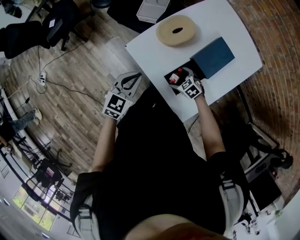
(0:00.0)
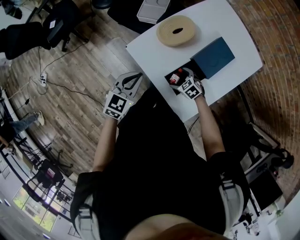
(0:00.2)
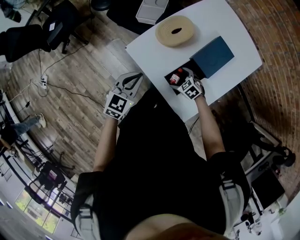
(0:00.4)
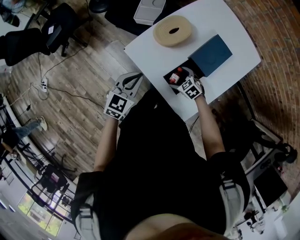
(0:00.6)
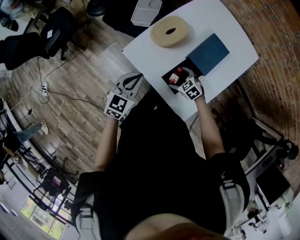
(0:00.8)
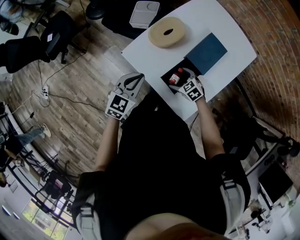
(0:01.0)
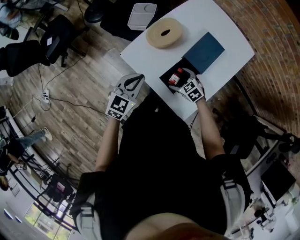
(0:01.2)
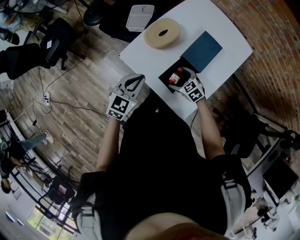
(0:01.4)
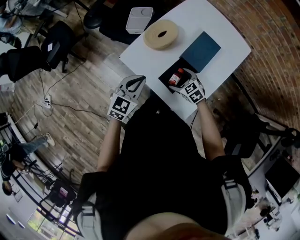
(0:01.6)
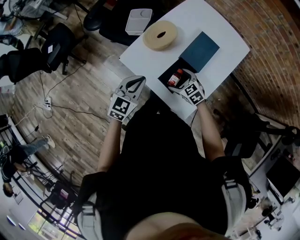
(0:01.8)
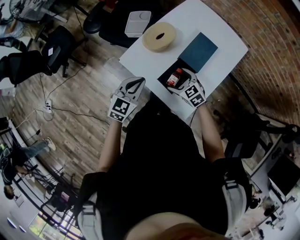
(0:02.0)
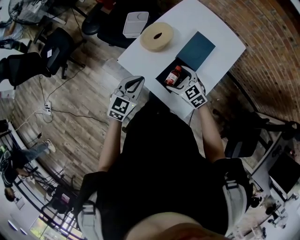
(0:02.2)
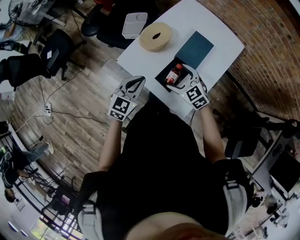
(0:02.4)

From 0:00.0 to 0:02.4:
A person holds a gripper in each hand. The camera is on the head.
From 0:00.0 to 0:01.2: The right gripper goes about 5 cm upward.
From 0:01.2 to 0:02.4: The right gripper moves upward, roughly 15 cm.

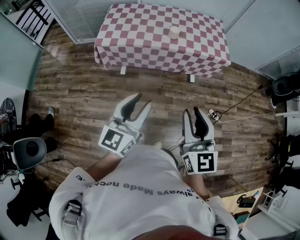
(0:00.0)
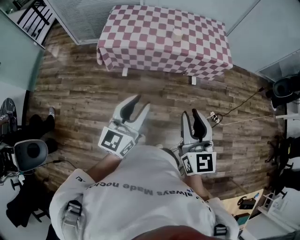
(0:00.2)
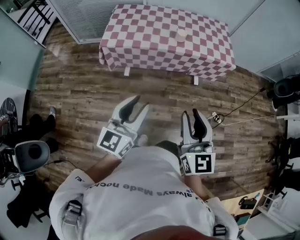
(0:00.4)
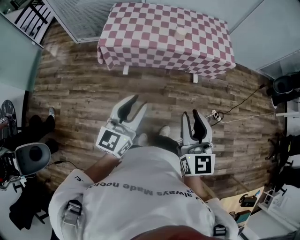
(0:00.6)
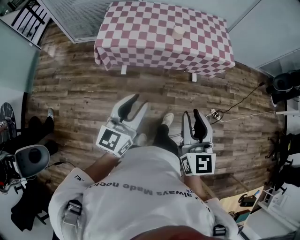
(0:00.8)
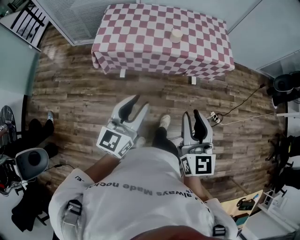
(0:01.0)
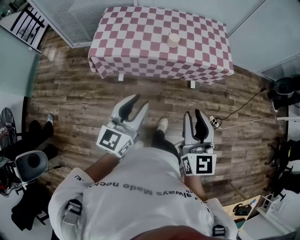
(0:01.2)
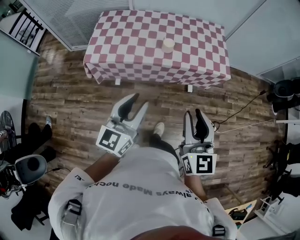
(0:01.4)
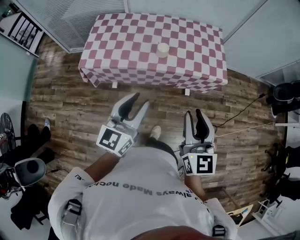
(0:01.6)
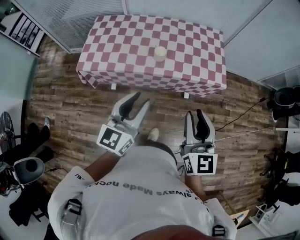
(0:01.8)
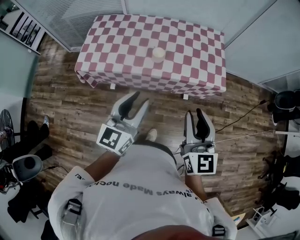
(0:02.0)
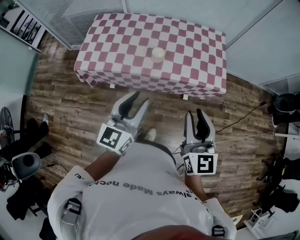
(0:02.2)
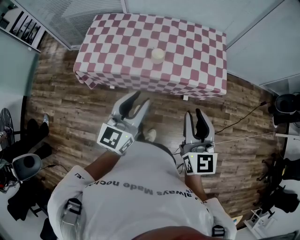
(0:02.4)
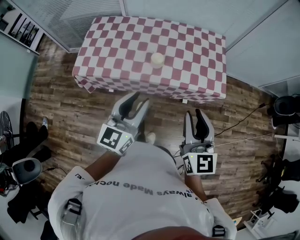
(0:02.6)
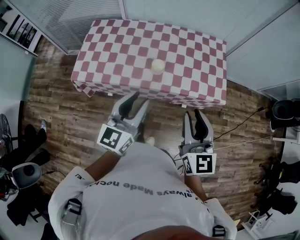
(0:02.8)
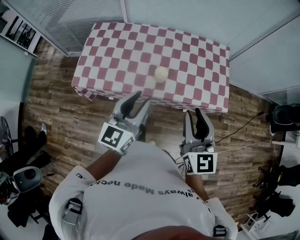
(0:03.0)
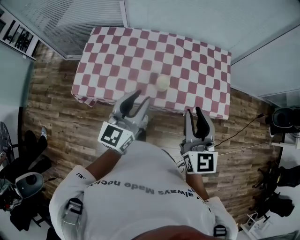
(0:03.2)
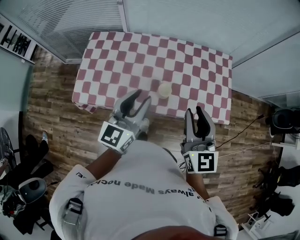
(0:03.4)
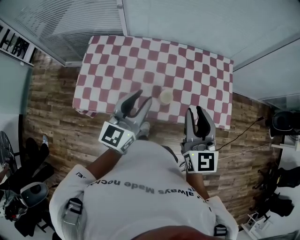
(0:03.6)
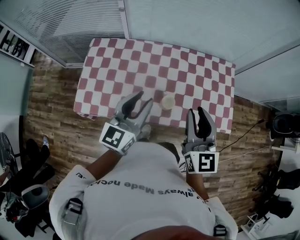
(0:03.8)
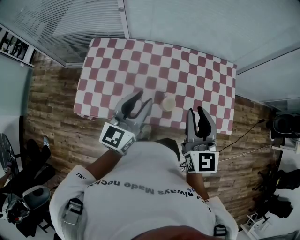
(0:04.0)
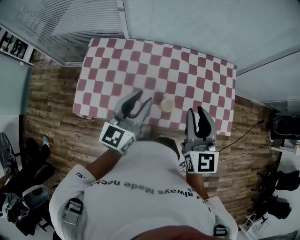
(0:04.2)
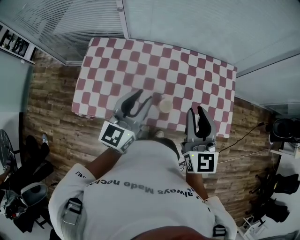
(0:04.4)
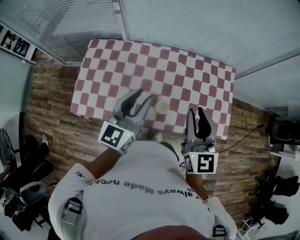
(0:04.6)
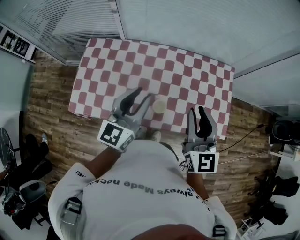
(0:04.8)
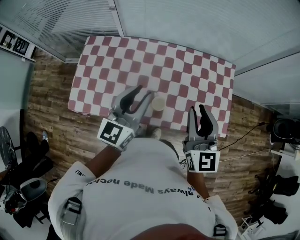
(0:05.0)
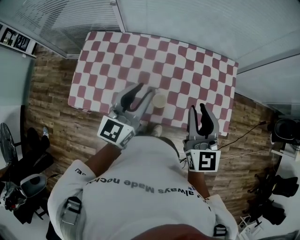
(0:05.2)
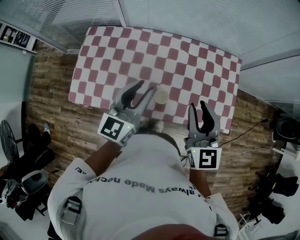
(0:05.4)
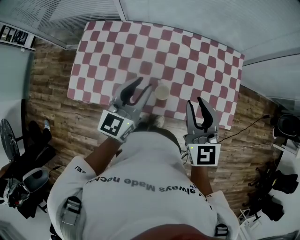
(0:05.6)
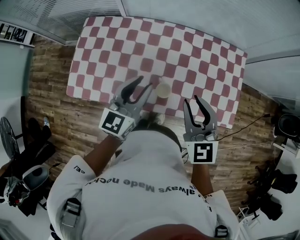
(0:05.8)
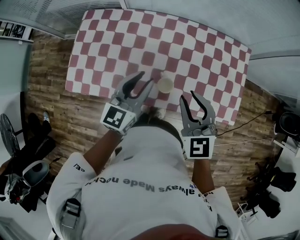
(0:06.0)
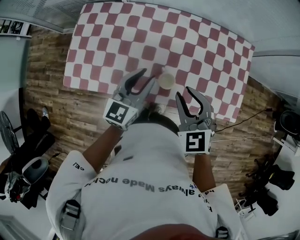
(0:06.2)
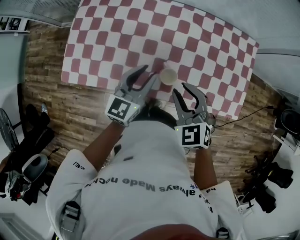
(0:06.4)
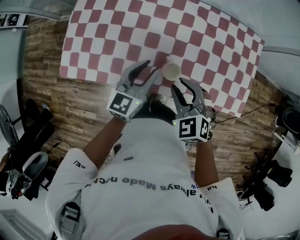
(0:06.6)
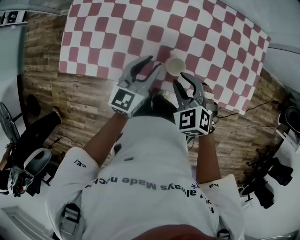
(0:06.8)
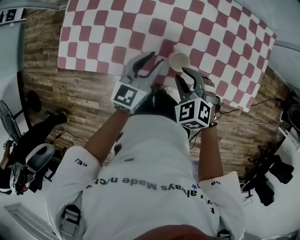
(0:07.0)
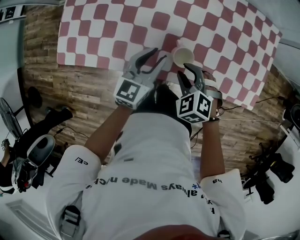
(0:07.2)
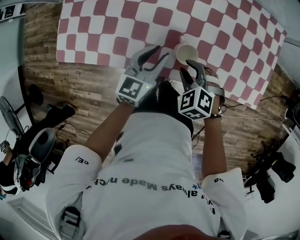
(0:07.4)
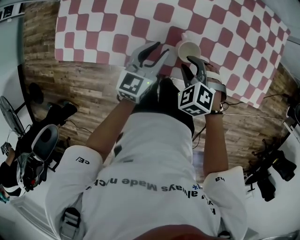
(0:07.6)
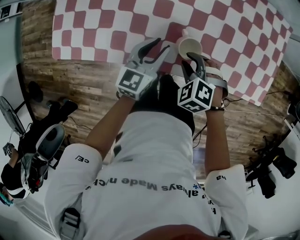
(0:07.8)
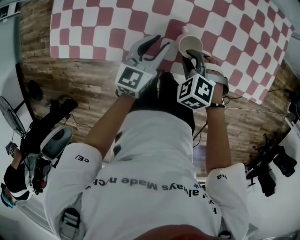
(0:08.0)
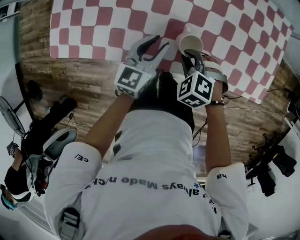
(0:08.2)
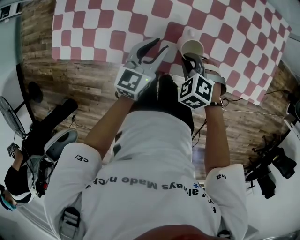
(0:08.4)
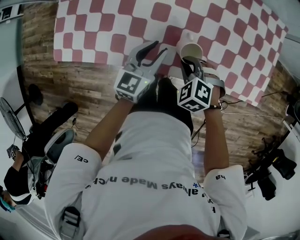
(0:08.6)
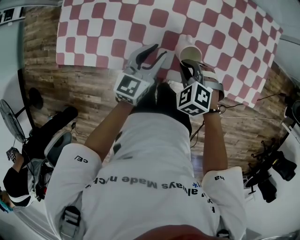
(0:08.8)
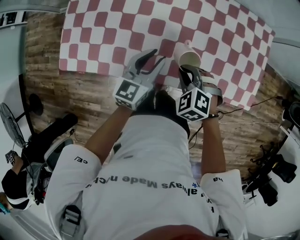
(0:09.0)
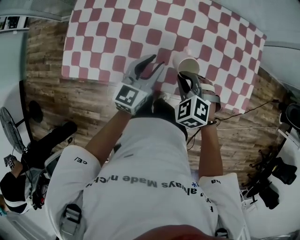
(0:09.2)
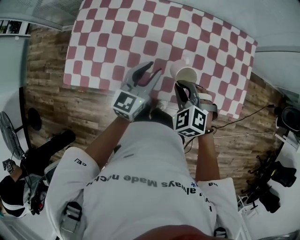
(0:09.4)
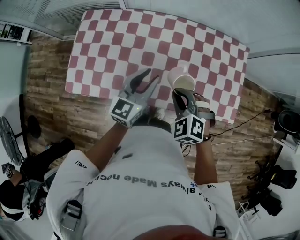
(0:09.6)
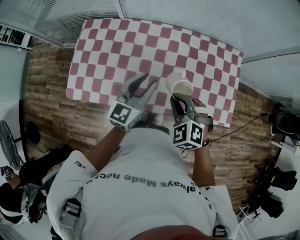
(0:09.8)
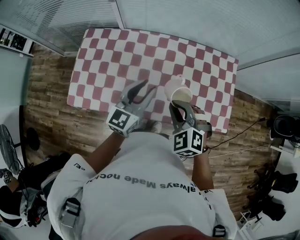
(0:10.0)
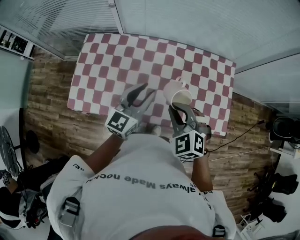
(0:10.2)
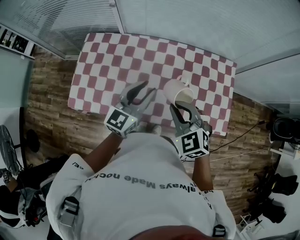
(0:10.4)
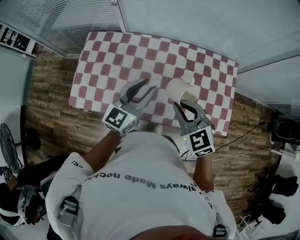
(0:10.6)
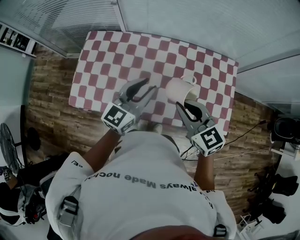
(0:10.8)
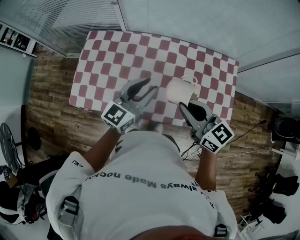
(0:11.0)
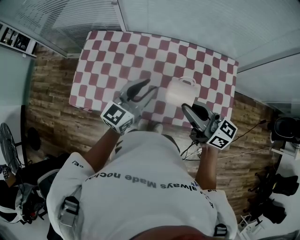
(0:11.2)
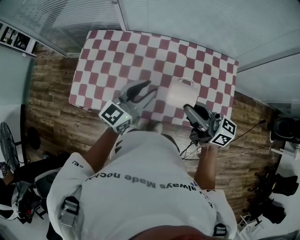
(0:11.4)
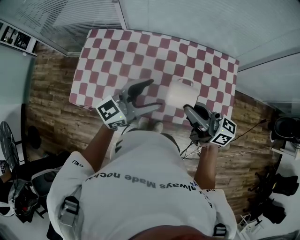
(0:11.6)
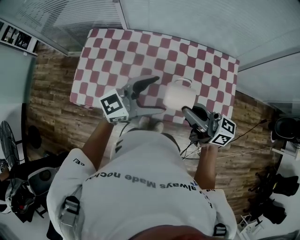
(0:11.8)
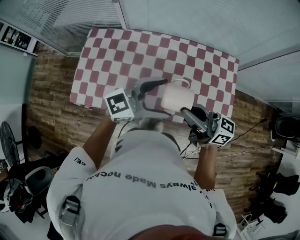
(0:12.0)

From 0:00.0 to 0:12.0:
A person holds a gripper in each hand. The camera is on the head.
From 0:00.0 to 0:01.6: The two grippers go roughly 25 cm forward.
From 0:01.6 to 0:03.0: Both grippers travel together forward, about 25 cm.
From 0:03.0 to 0:04.4: The grippers both shift forward by roughly 25 cm.
From 0:04.4 to 0:06.0: The grippers both shift downward by about 10 cm. The right gripper swivels approximately 30 degrees.
From 0:06.0 to 0:07.6: The two grippers go approximately 25 cm downward. The right gripper tilts its fingers roughly 40 degrees downward.
From 0:07.6 to 0:09.0: The grippers both shift upward by some 5 cm.
From 0:09.0 to 0:10.4: Both grippers move upward, some 25 cm. The right gripper changes its angle by some 30 degrees.
From 0:10.4 to 0:12.0: The right gripper is displaced upward by about 5 cm, and angles its fingers upward, by roughly 50 degrees. Meanwhile the left gripper shifts by approximately 10 cm, swivels about 40 degrees, and opens.

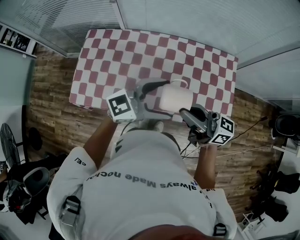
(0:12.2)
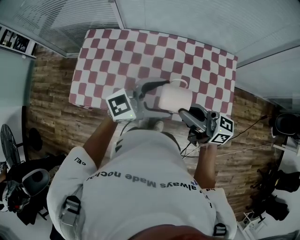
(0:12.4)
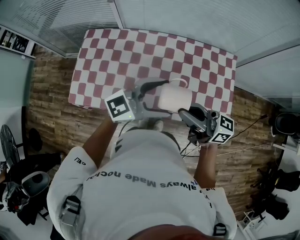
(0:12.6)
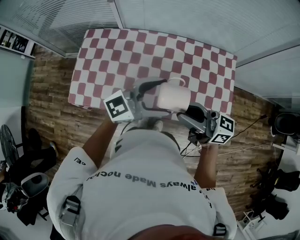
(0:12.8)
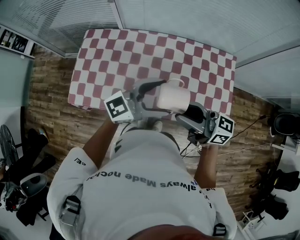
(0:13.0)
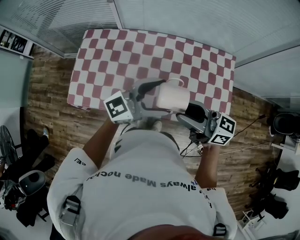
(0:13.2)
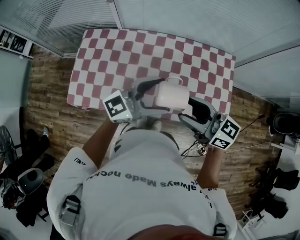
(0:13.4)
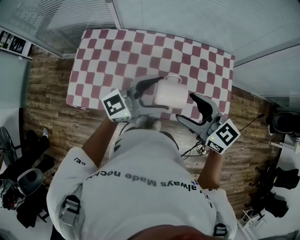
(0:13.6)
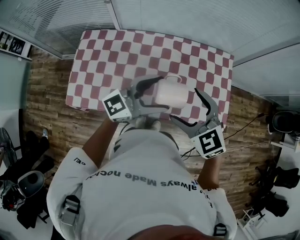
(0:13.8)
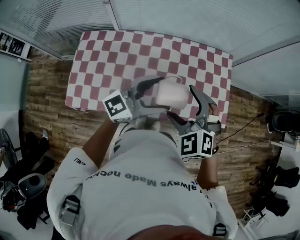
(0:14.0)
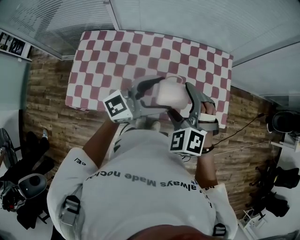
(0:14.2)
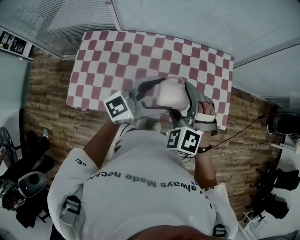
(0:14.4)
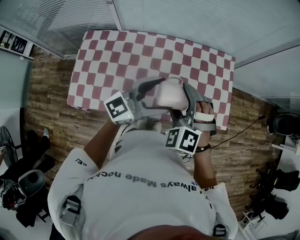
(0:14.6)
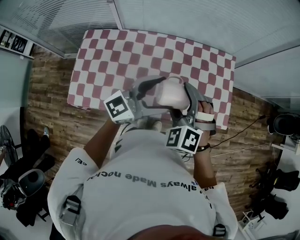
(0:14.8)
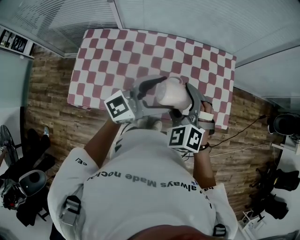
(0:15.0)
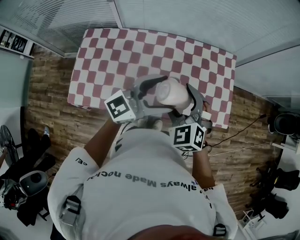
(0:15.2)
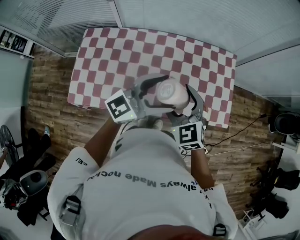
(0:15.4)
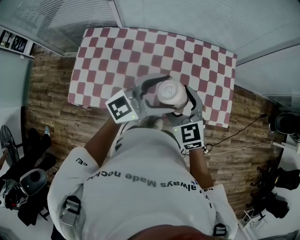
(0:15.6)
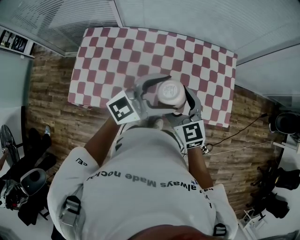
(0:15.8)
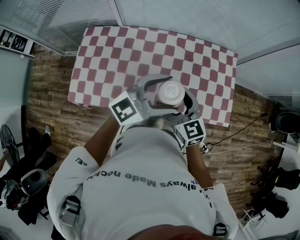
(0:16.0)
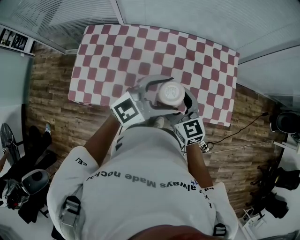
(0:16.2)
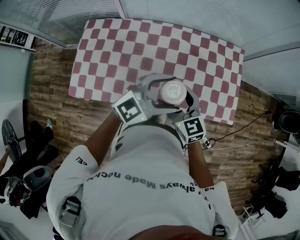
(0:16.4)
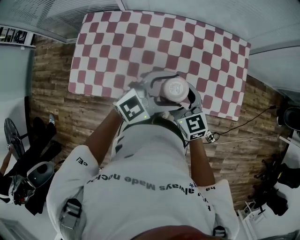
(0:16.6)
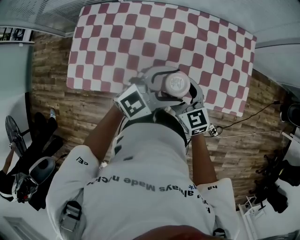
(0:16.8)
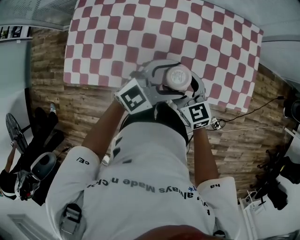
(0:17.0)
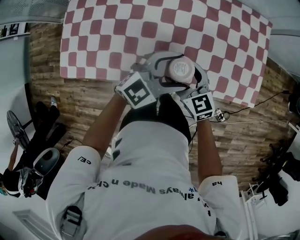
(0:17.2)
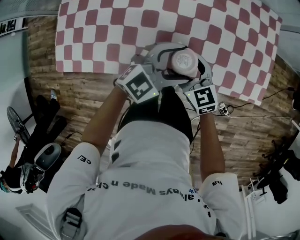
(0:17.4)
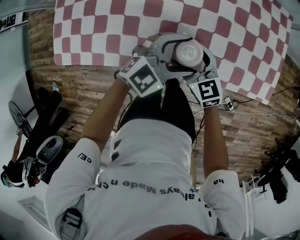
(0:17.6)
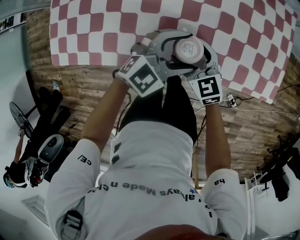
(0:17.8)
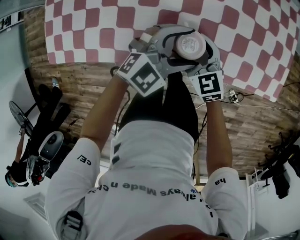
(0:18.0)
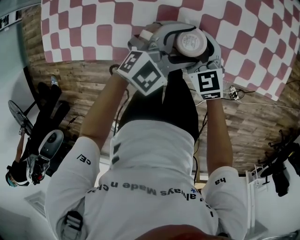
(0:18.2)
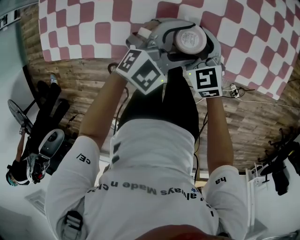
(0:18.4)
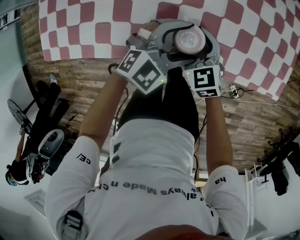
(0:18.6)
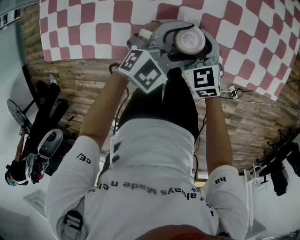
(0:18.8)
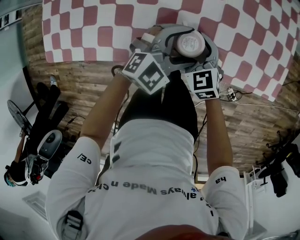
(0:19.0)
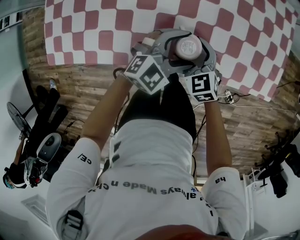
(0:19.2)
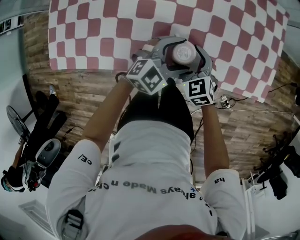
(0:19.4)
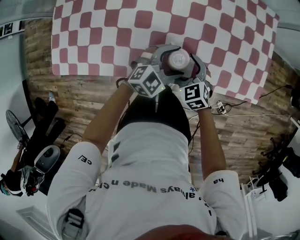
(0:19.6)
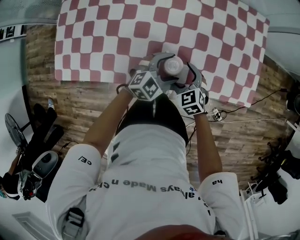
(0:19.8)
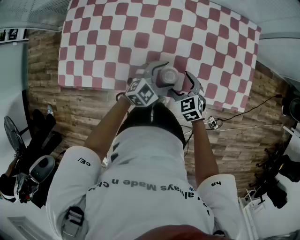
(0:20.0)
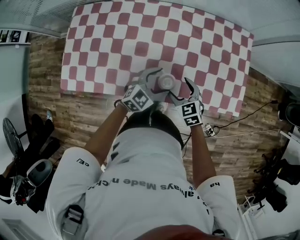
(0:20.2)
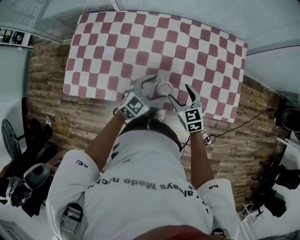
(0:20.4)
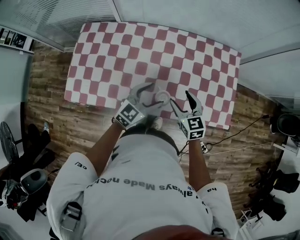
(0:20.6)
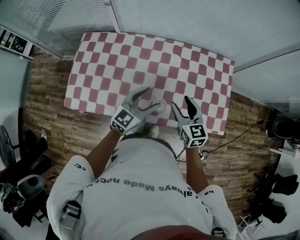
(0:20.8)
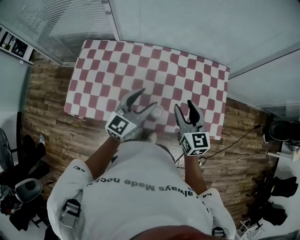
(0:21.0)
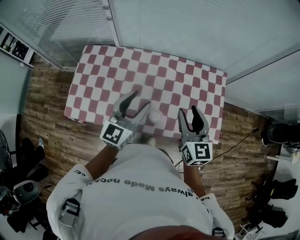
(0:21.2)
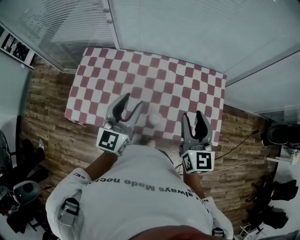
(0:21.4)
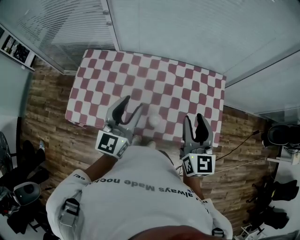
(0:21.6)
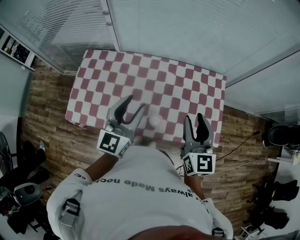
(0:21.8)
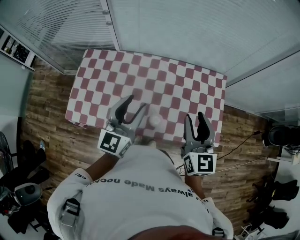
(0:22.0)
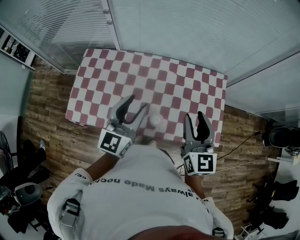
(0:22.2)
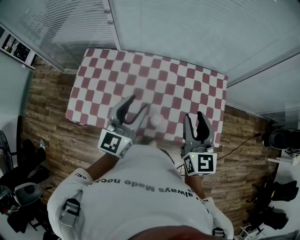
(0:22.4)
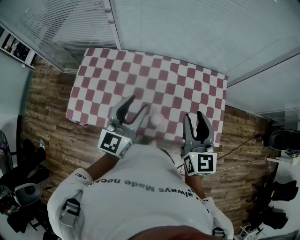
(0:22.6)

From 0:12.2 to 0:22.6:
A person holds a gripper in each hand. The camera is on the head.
From 0:12.2 to 0:13.6: The right gripper points its fingers some 30 degrees further downward, and opens up.
From 0:13.6 to 0:15.2: The right gripper changes place by about 5 cm, and rotates some 50 degrees.
From 0:15.2 to 0:16.6: Both grippers move downward, about 10 cm. The left gripper swivels about 20 degrees, while the right gripper turns by some 40 degrees.
From 0:16.6 to 0:18.2: Both grippers travel together downward, approximately 30 cm.
From 0:18.2 to 0:19.6: The grippers move only a little.
From 0:19.6 to 0:21.2: Both grippers move upward, some 40 cm. The right gripper tips its fingers upward by about 30 degrees, and closes its fingers; the left gripper changes its angle by about 50 degrees, and closes.
From 0:21.2 to 0:22.6: The grippers stay close to where they were, moving slightly.
